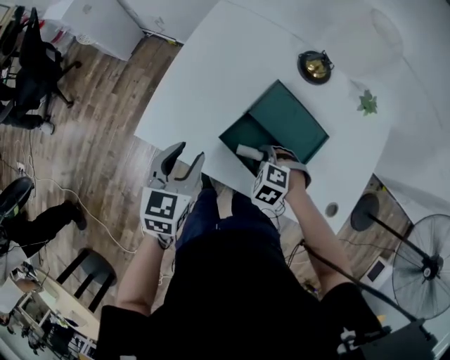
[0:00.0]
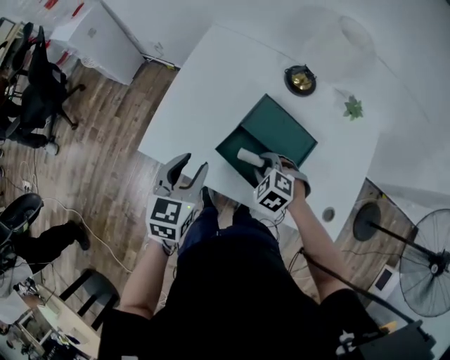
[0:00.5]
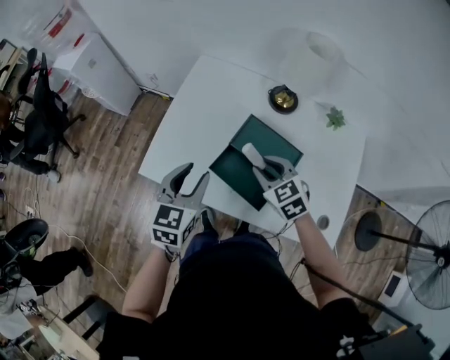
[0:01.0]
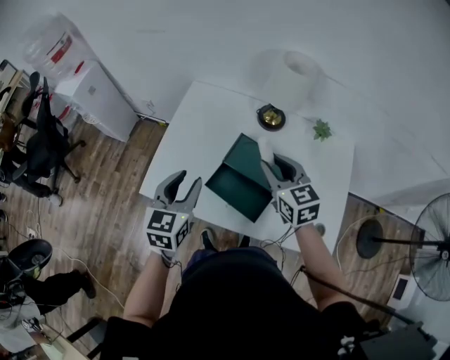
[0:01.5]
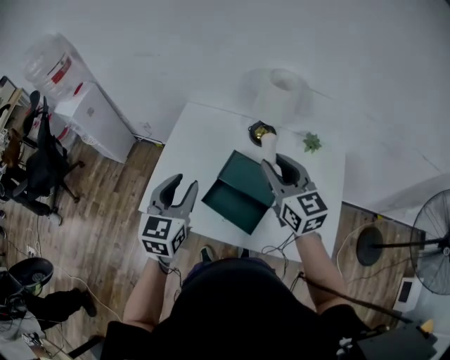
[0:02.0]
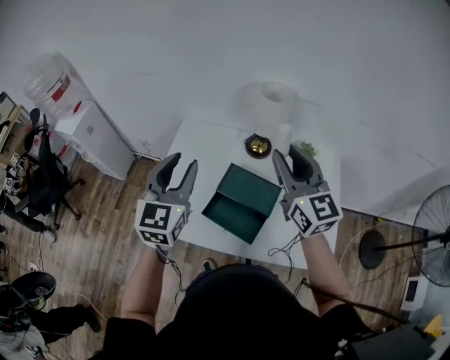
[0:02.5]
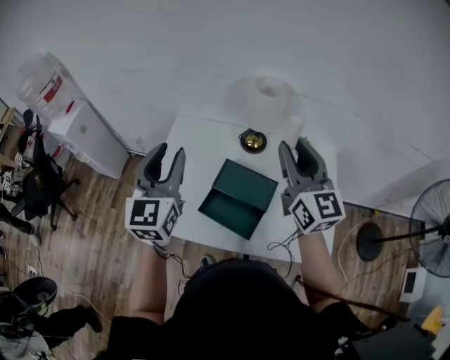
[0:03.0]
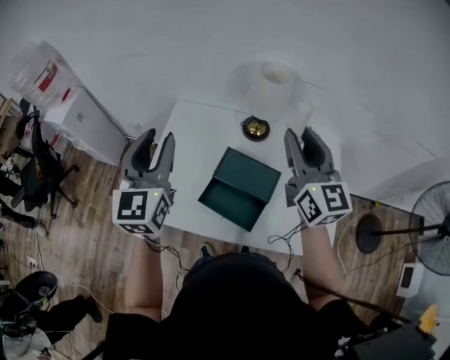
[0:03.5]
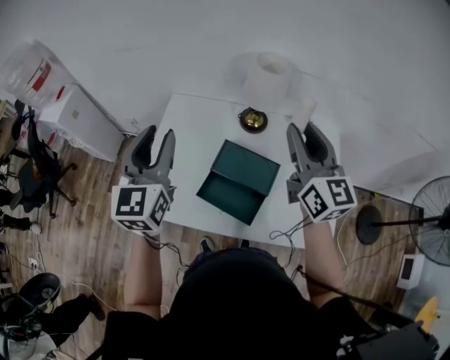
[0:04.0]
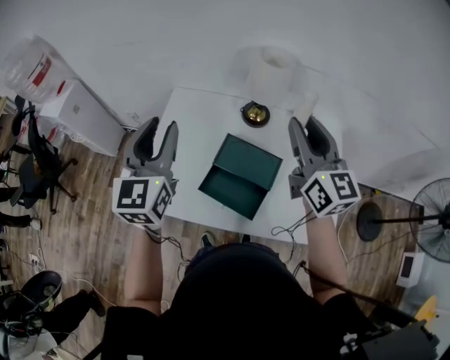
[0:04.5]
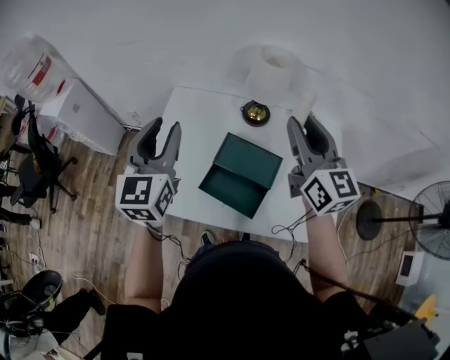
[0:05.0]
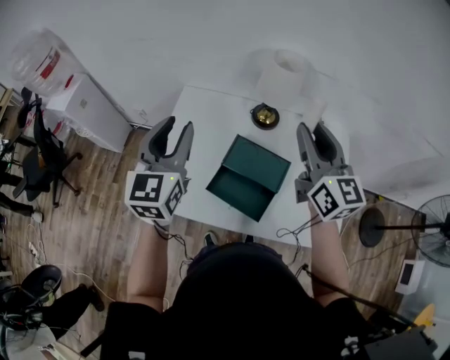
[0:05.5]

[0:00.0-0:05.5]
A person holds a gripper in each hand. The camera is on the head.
0:00.0 to 0:02.0: The right gripper shifts some 40 cm upward, and tips its fingers upward by some 60 degrees. Meanwhile the left gripper shifts roughly 20 cm upward.
0:02.0 to 0:03.5: The right gripper moves upward and to the right, some 10 cm, while the left gripper is displaced upward and forward by approximately 15 cm.
0:03.5 to 0:05.5: The grippers move only a little.

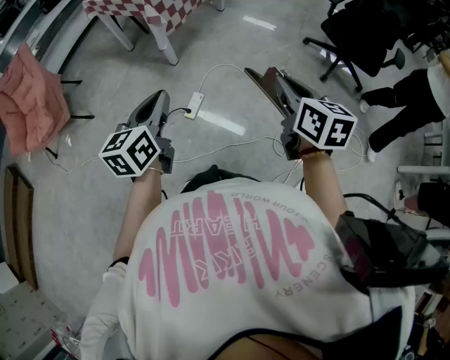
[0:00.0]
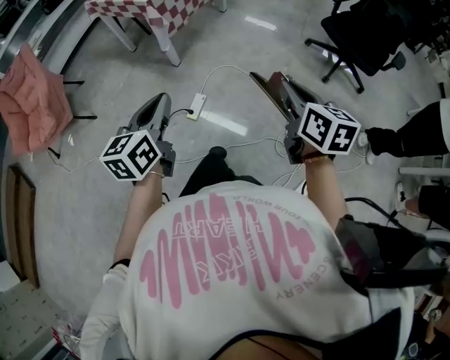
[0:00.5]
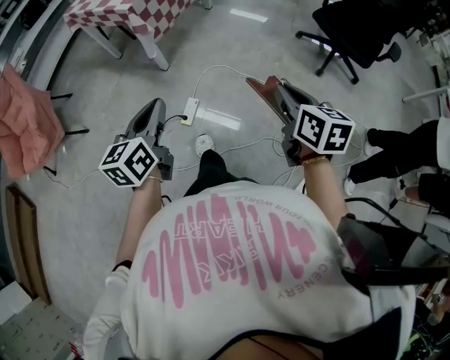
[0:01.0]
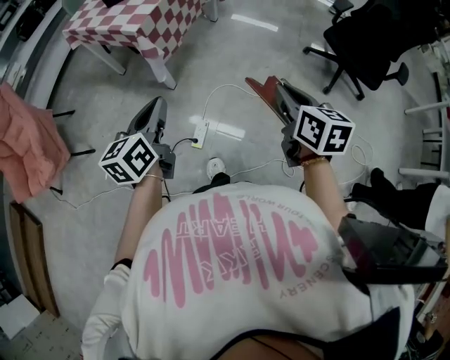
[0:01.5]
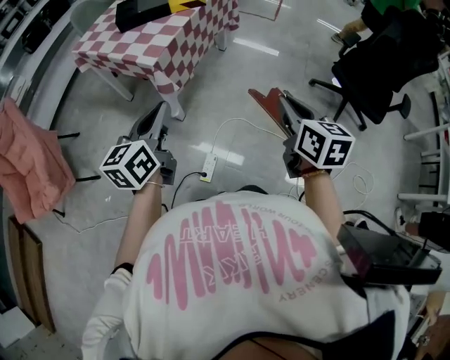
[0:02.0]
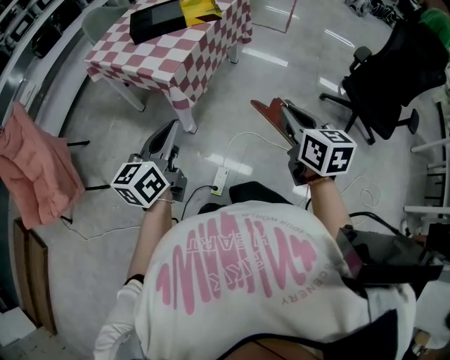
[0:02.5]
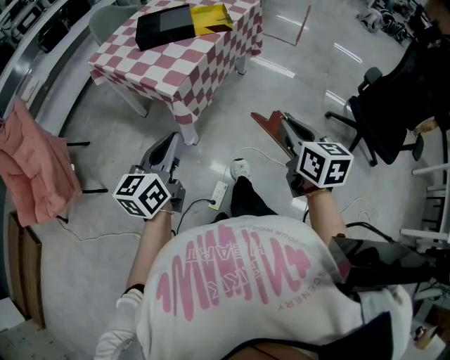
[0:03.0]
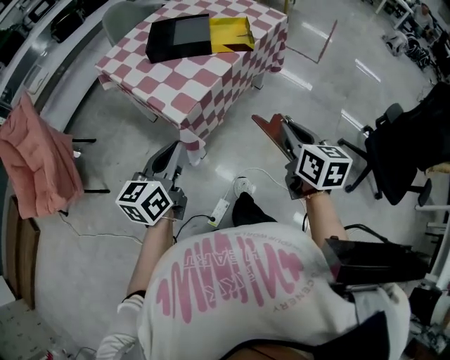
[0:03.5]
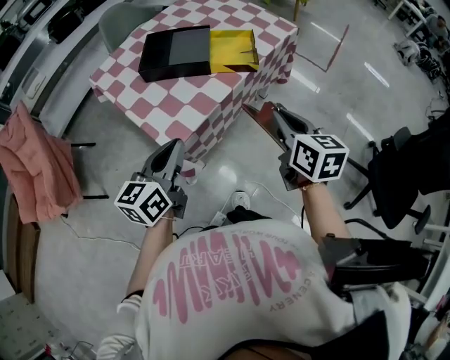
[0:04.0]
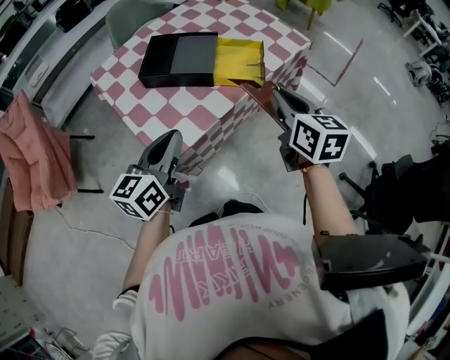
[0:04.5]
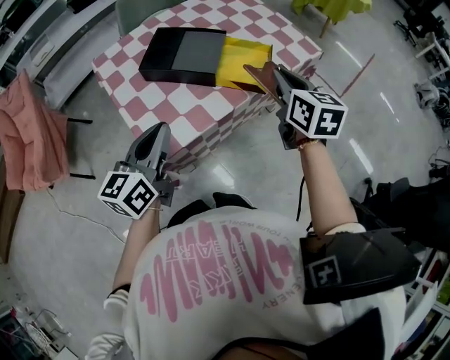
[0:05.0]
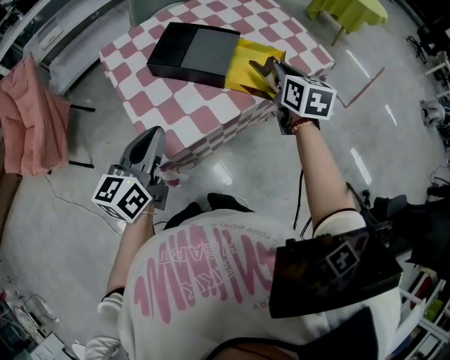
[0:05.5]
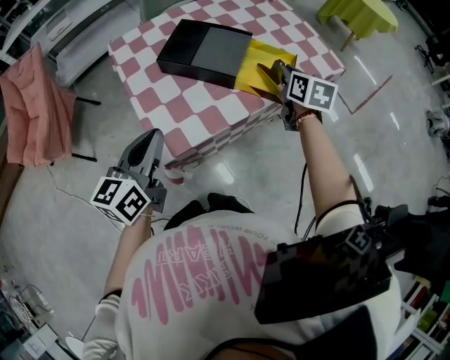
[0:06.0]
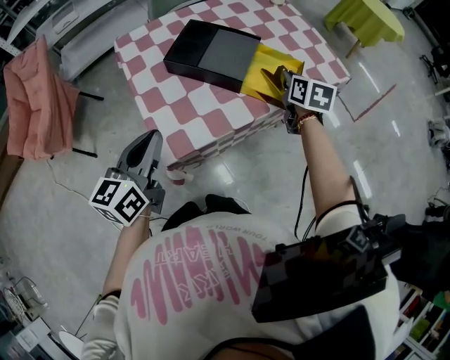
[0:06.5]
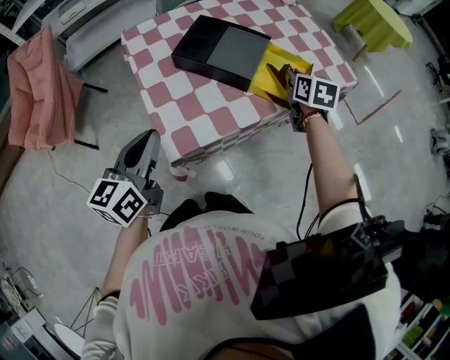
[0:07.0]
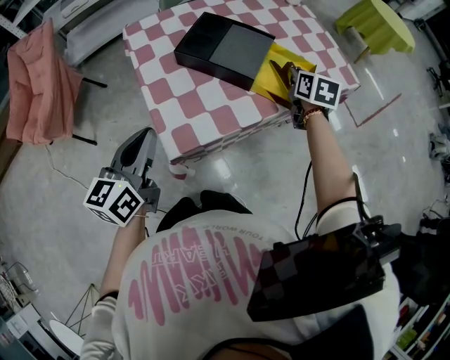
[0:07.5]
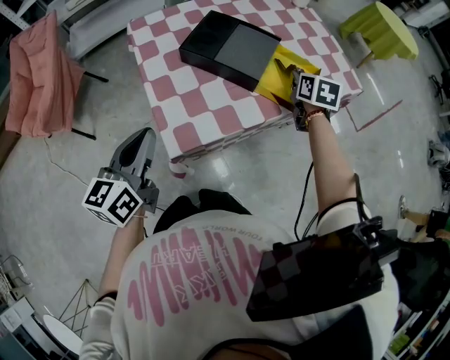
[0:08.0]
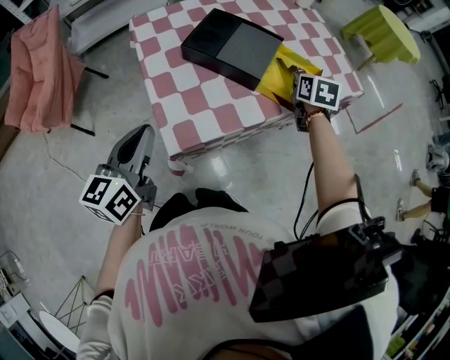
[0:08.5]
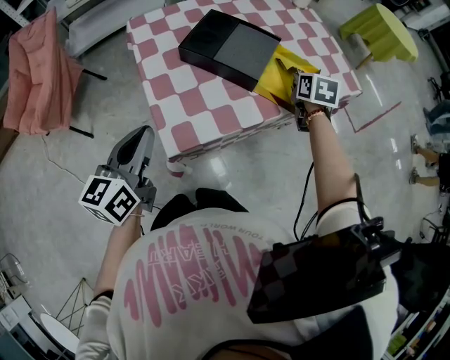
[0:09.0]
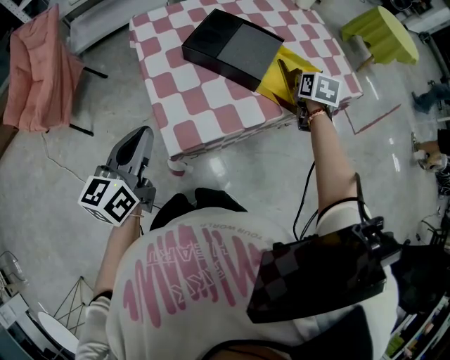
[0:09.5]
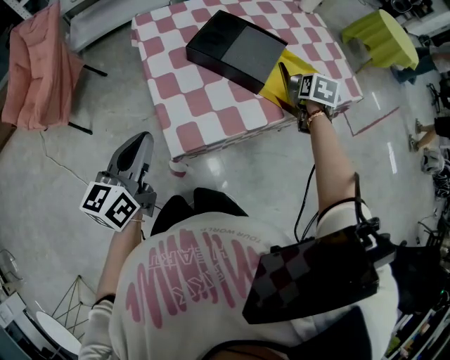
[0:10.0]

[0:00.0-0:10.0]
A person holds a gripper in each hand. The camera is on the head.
0:00.0 to 0:02.0: Both grippers travel together forward, approximately 35 cm.
0:02.0 to 0:04.0: The grippers both shift forward by about 35 cm.
0:04.0 to 0:06.0: The right gripper is displaced forward by some 30 cm. The left gripper goes about 10 cm forward.
0:06.0 to 0:08.0: The right gripper ends up some 5 cm from where it was; the left gripper goes some 5 cm to the left.
0:08.0 to 0:10.0: The grippers stay close to where they were, moving slightly.

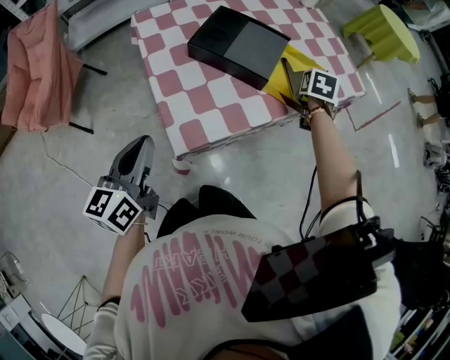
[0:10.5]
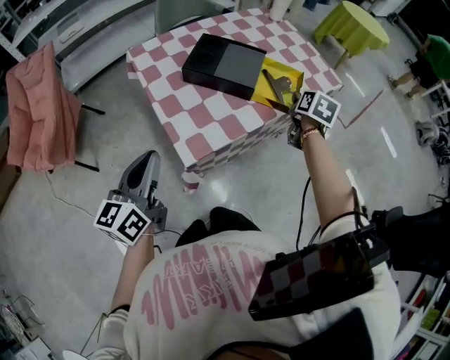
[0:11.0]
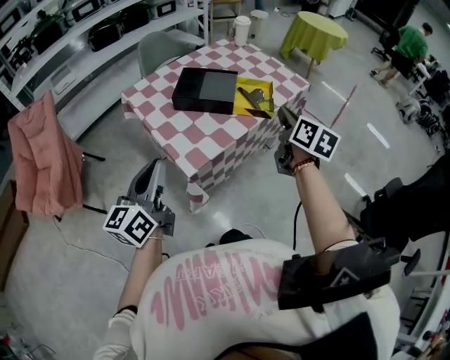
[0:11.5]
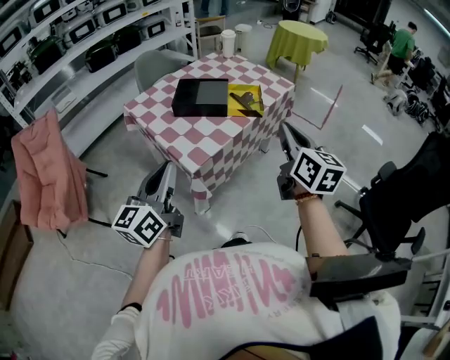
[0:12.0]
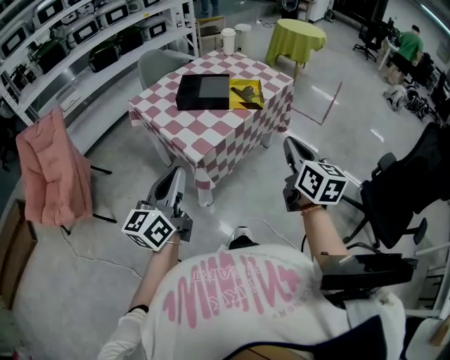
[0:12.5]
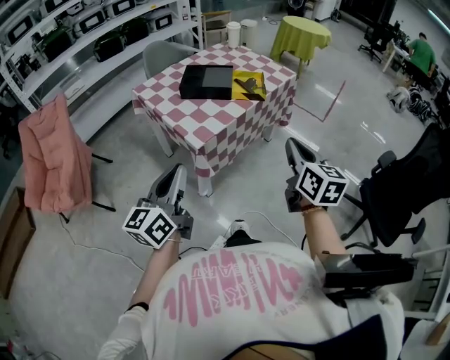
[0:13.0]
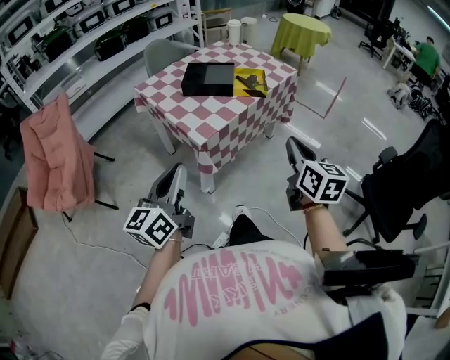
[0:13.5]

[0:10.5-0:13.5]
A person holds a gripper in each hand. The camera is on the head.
0:10.5 to 0:12.0: The left gripper goes roughly 20 cm backward and upward, and turns by about 30 degrees. Meanwhile the right gripper heads backward and upward, covering approximately 50 cm, tilts its fingers about 40 degrees upward, and closes.
0:12.0 to 0:13.5: Both grippers travel together backward, about 10 cm.

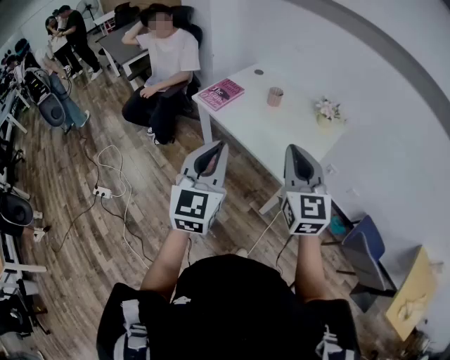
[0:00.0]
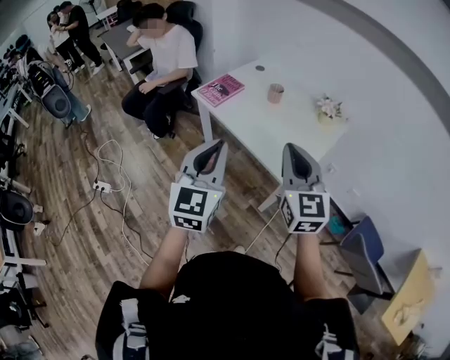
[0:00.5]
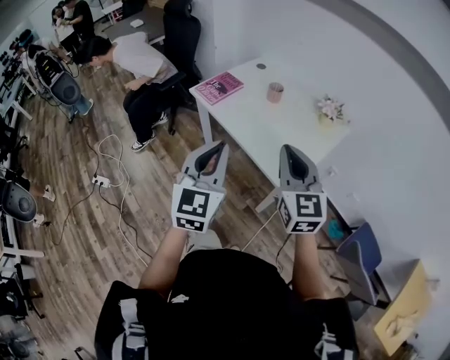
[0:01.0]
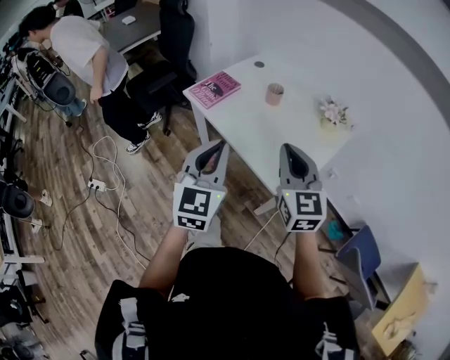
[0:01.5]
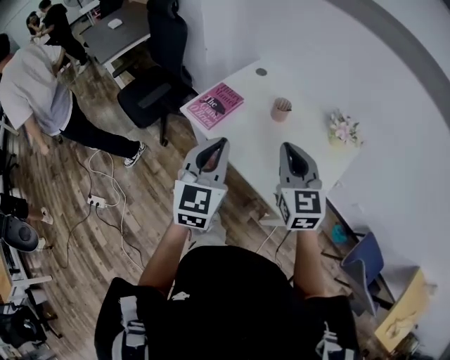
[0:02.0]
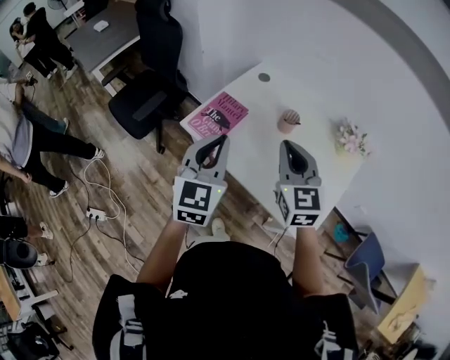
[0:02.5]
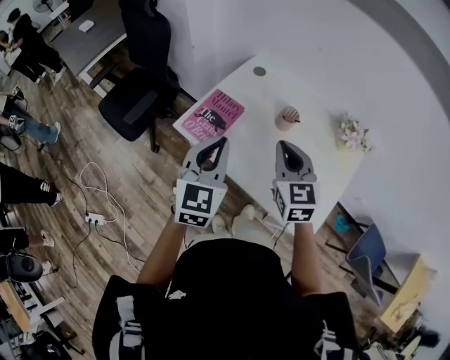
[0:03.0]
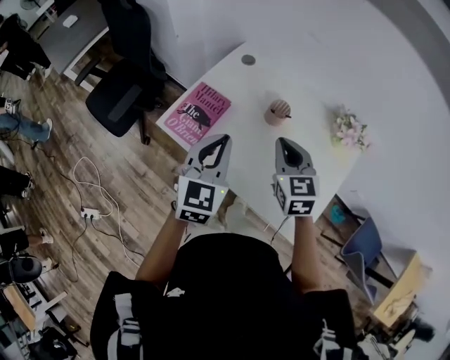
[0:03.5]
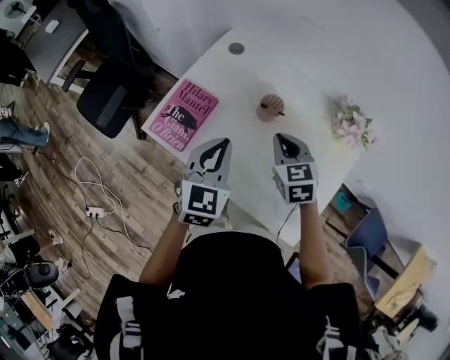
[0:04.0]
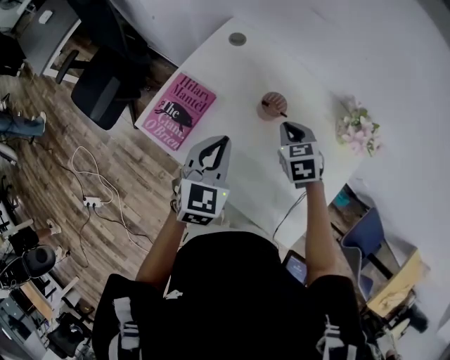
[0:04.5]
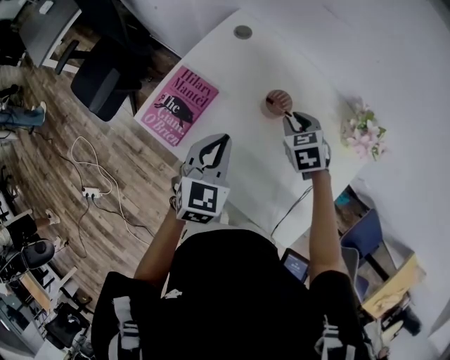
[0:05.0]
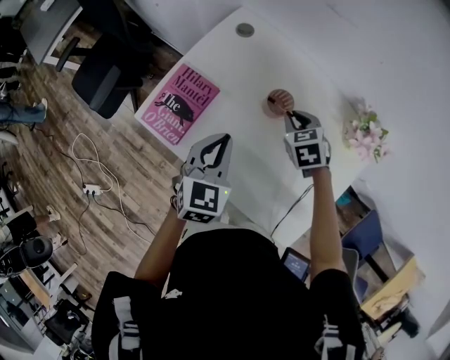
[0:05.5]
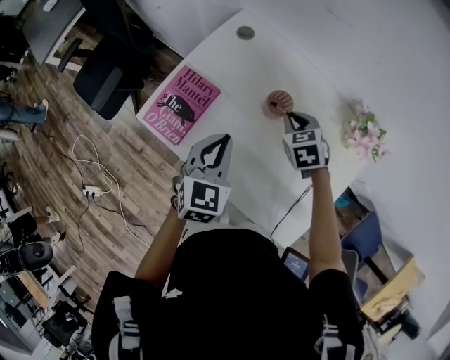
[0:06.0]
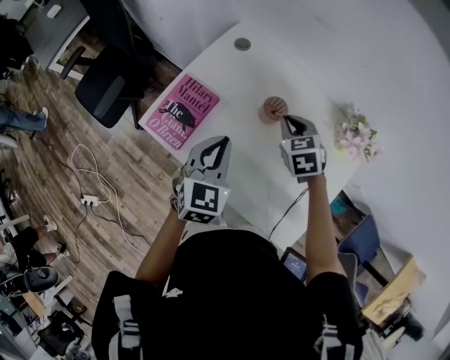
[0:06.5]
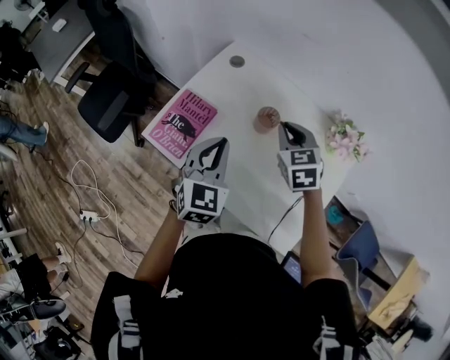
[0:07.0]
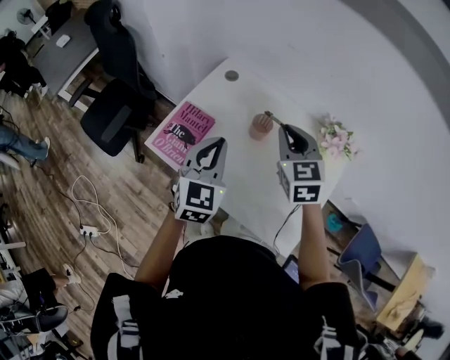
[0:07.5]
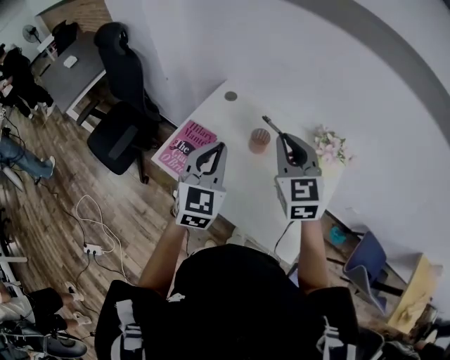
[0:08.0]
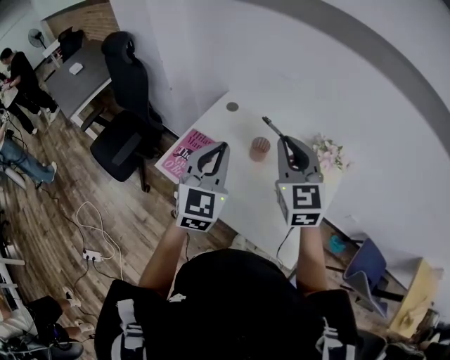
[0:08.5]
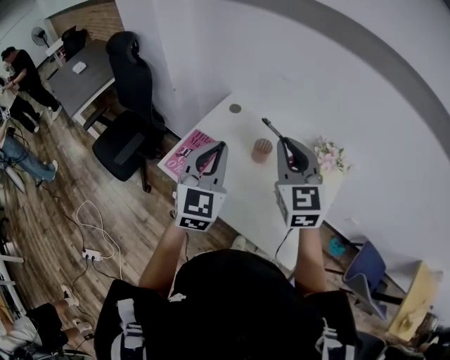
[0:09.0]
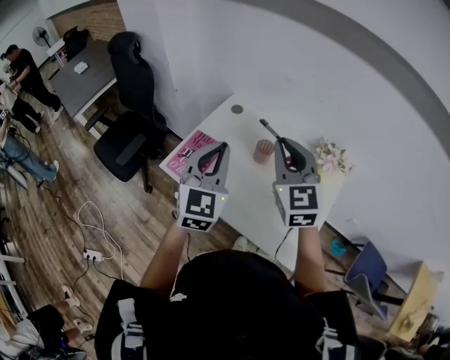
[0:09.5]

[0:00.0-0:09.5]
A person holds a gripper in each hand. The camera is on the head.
0:00.0 to 0:02.0: Both grippers travel together forward, about 25 cm.
0:02.0 to 0:04.0: The grippers both shift forward and downward by roughly 30 cm. The left gripper swivels approximately 20 degrees. The right gripper points its fingers about 30 degrees further downward.
0:04.0 to 0:05.5: The right gripper heads downward and forward, covering about 15 cm. The left gripper shifts roughly 5 cm downward.
0:05.5 to 0:07.5: The right gripper goes about 25 cm upward, and angles its fingers upward, by about 30 degrees. The left gripper shifts some 15 cm upward.
0:07.5 to 0:09.5: The right gripper goes approximately 15 cm upward and backward. Meanwhile the left gripper heads upward, covering about 10 cm.
